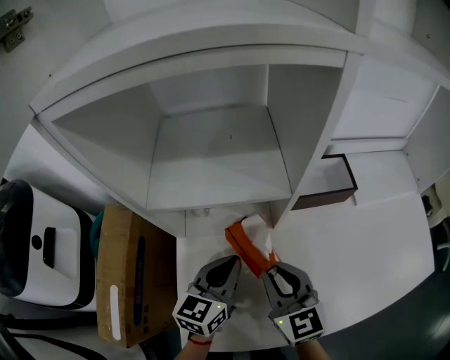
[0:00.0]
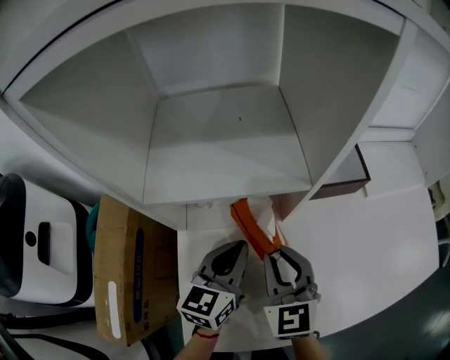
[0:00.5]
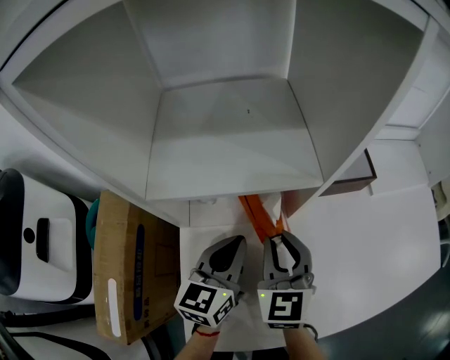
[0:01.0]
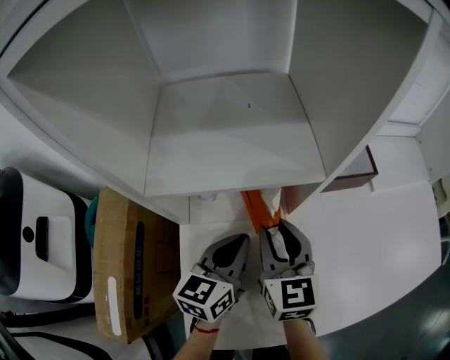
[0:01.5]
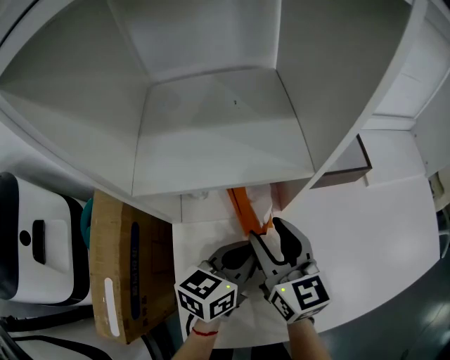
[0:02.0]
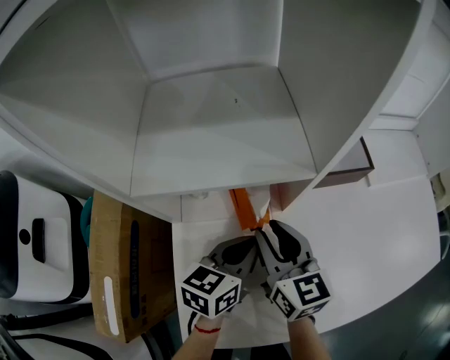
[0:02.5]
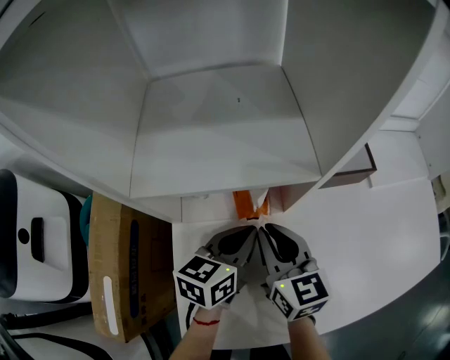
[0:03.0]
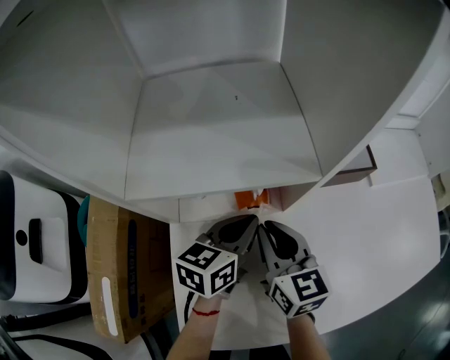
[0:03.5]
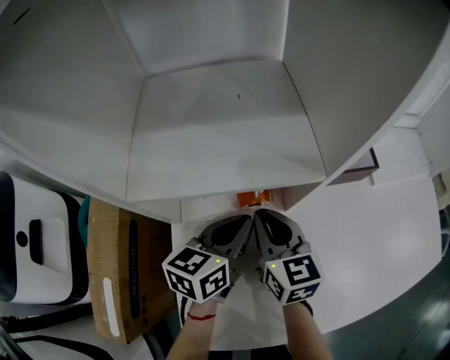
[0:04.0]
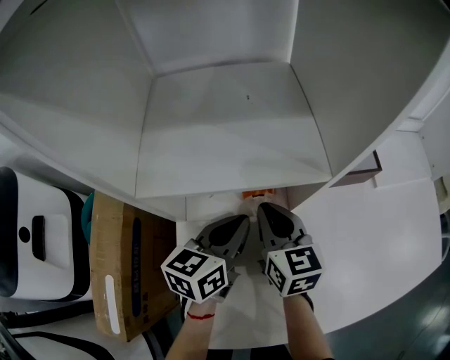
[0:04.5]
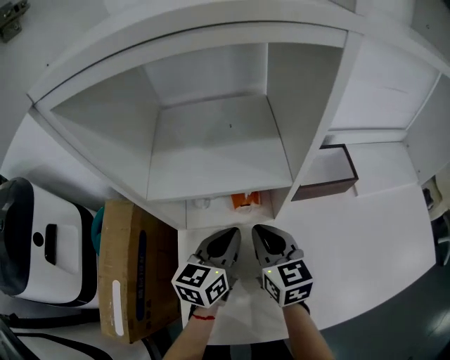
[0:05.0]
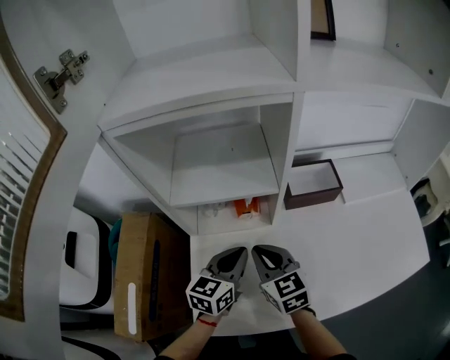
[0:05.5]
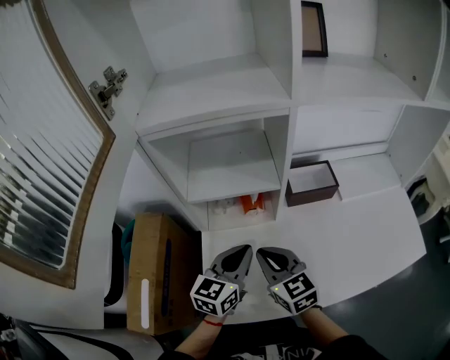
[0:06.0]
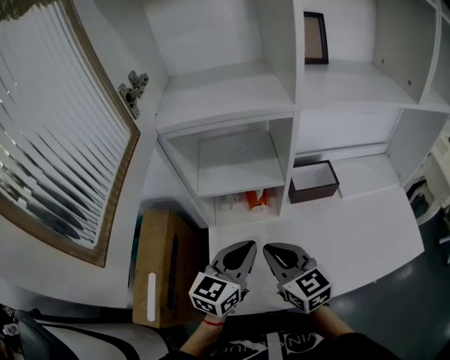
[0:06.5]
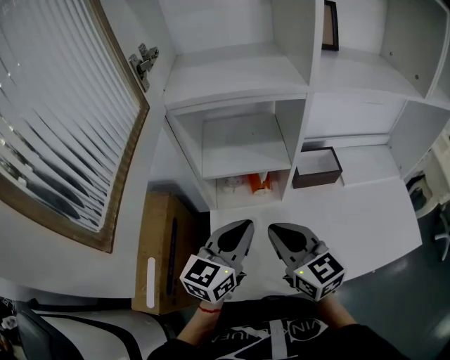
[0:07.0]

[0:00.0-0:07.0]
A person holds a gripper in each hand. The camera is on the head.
0:00.0 to 0:02.0: The right gripper heads forward, covering approximately 5 cm, and opens up.
0:02.0 to 0:03.5: The right gripper closes. Meanwhile the left gripper shifts some 5 cm forward.
0:03.5 to 0:05.0: The left gripper shifts by some 5 cm.
0:05.0 to 0:07.0: The grippers both shift upward and backward by approximately 25 cm.

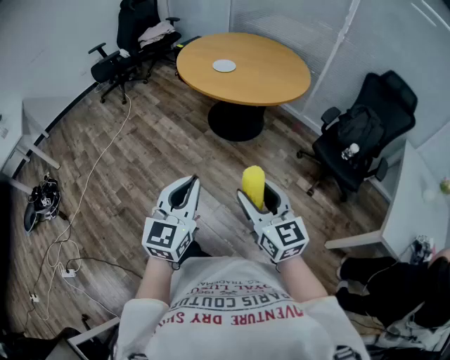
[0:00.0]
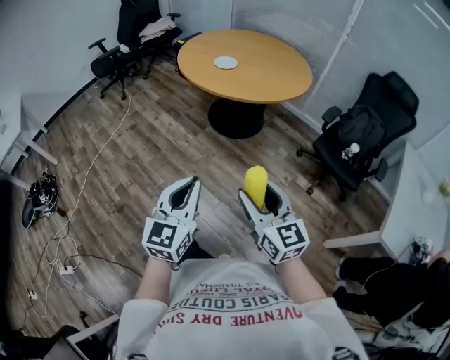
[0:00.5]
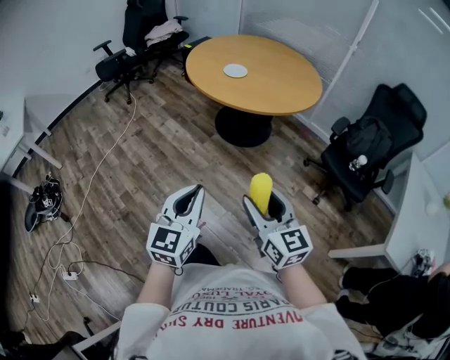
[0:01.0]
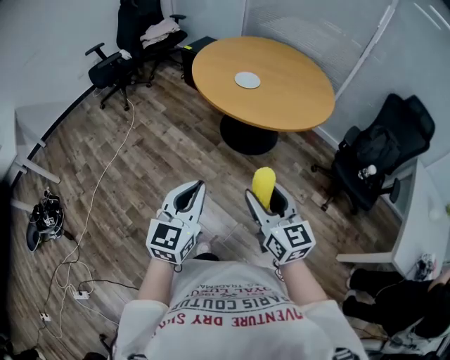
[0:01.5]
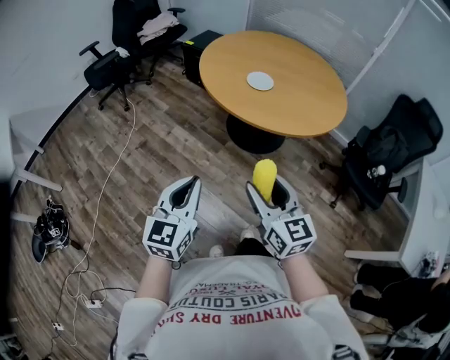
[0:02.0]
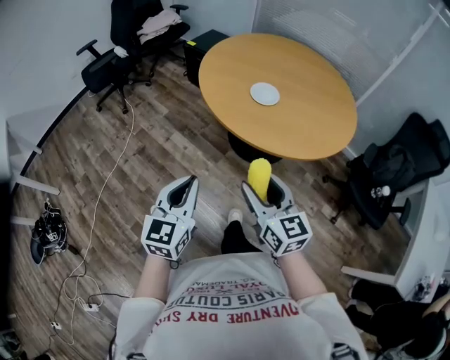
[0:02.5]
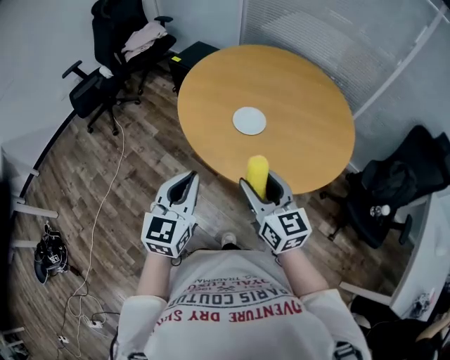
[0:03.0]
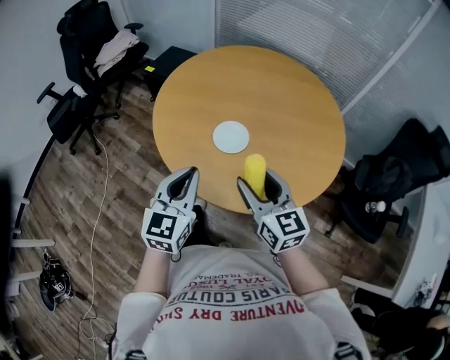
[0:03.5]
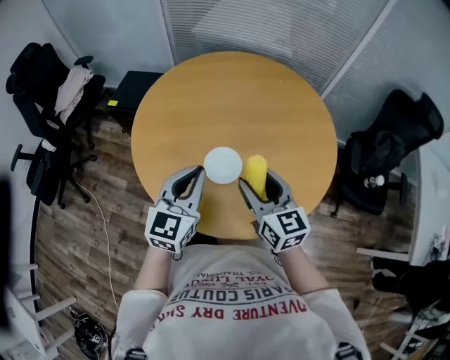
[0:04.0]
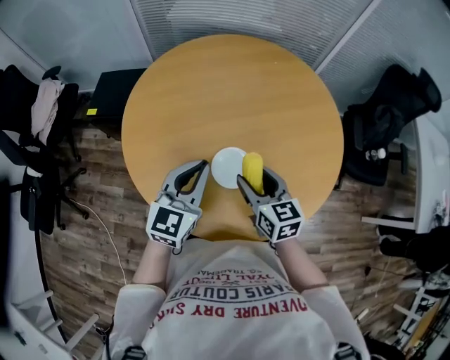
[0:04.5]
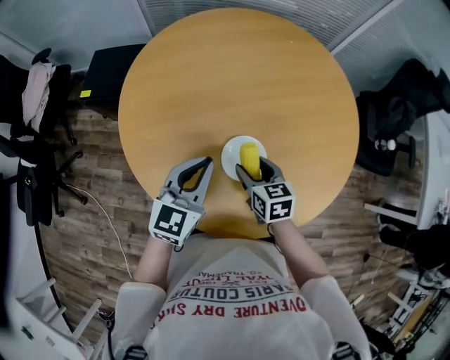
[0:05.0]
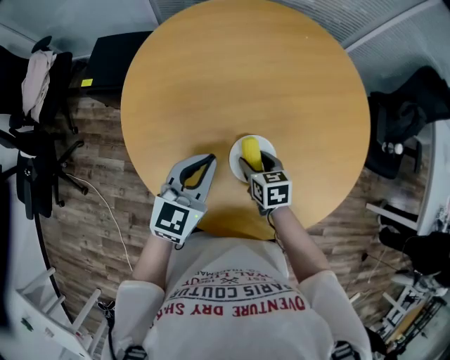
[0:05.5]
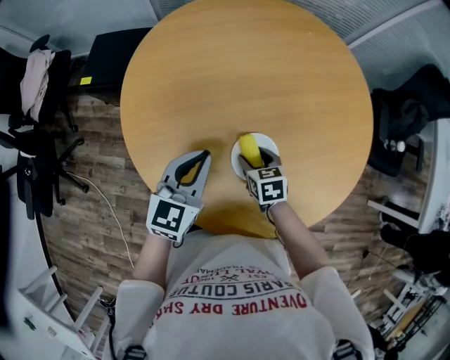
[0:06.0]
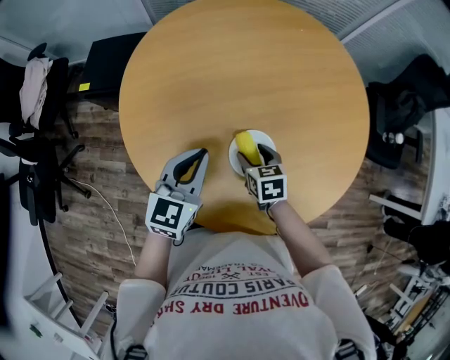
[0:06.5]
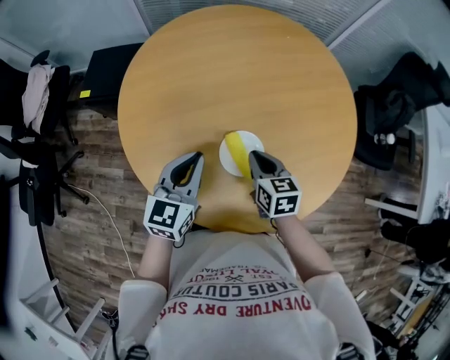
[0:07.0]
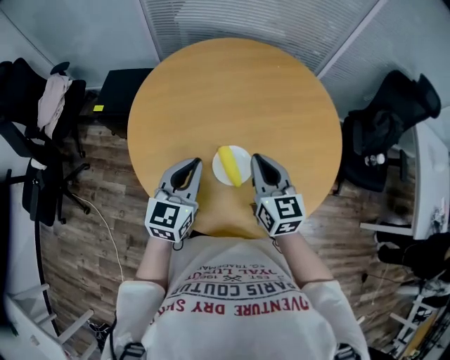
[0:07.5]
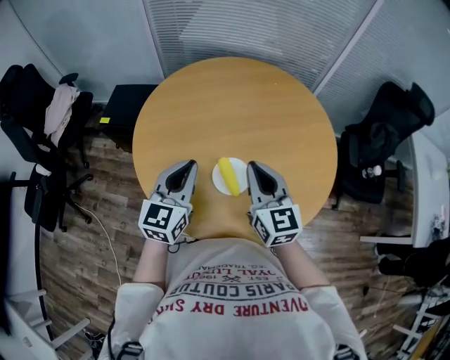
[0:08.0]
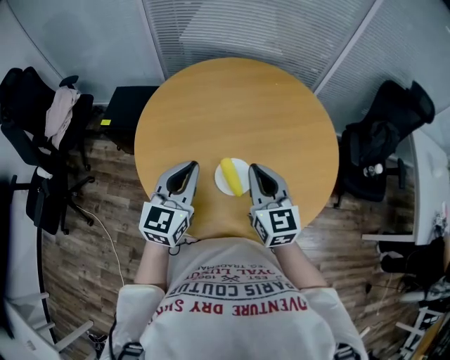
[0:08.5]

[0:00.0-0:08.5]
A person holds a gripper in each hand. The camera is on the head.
0:00.0 to 0:02.0: Both grippers move forward and to the left, roughly 35 cm.
0:02.0 to 0:04.0: The two grippers travel together, some 60 cm. The left gripper swivels approximately 30 degrees. The right gripper turns by about 20 degrees.
0:04.0 to 0:06.5: The right gripper goes some 25 cm downward, and points its fingers about 40 degrees further downward, while the left gripper is displaced downward, forward and to the left by approximately 20 cm.
0:06.5 to 0:08.5: The right gripper heads upward, covering roughly 30 cm, angles its fingers upward, by some 40 degrees, and closes. Meanwhile the left gripper is displaced upward by some 15 cm.

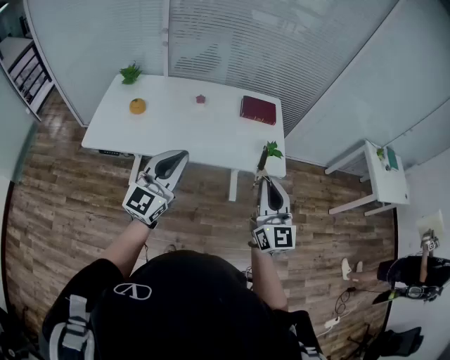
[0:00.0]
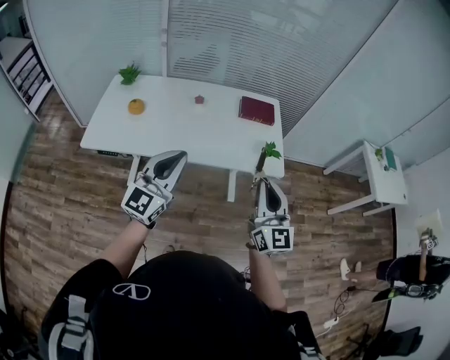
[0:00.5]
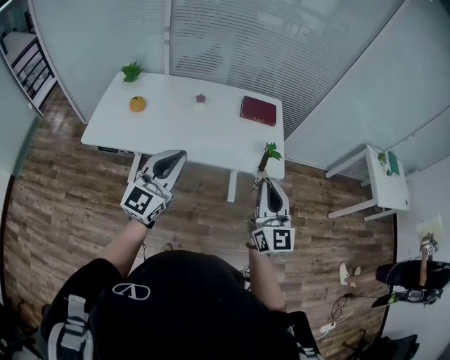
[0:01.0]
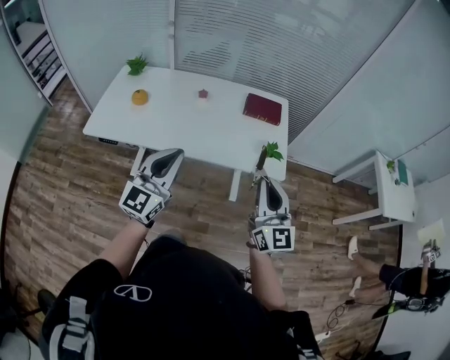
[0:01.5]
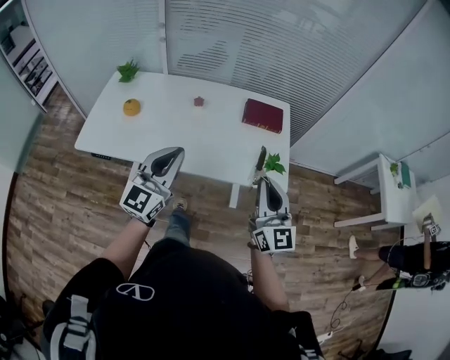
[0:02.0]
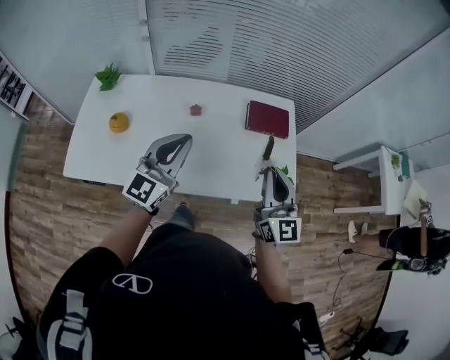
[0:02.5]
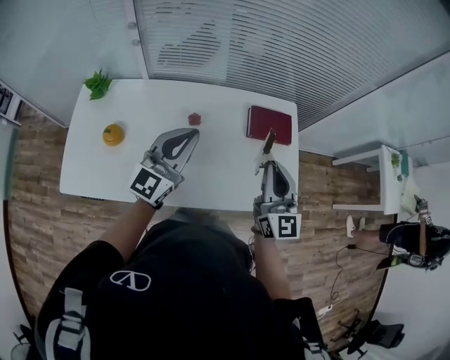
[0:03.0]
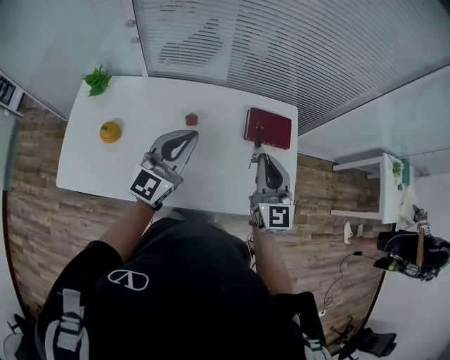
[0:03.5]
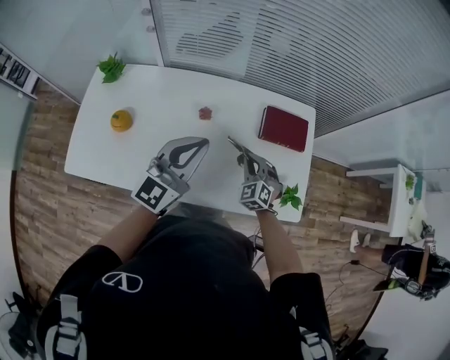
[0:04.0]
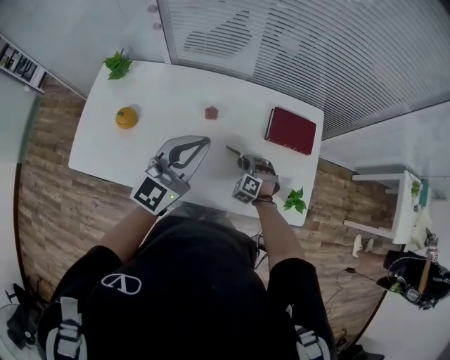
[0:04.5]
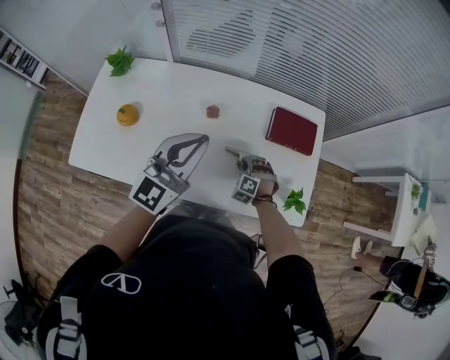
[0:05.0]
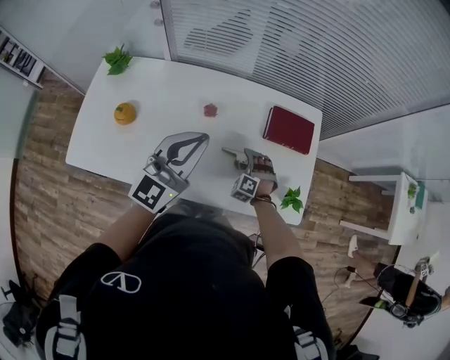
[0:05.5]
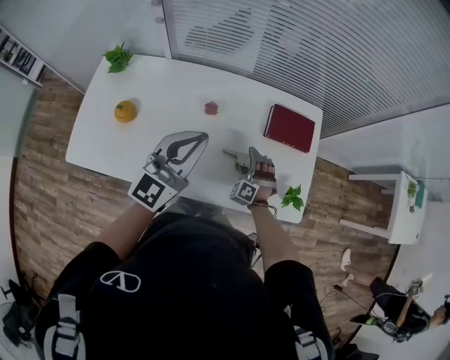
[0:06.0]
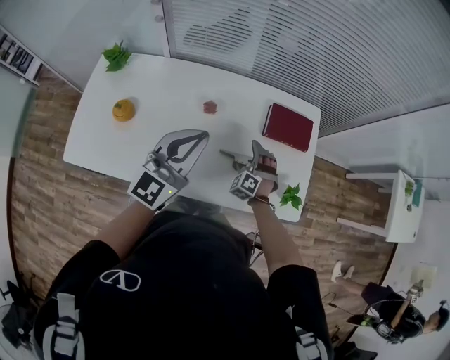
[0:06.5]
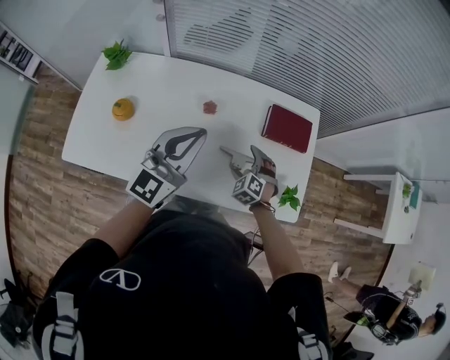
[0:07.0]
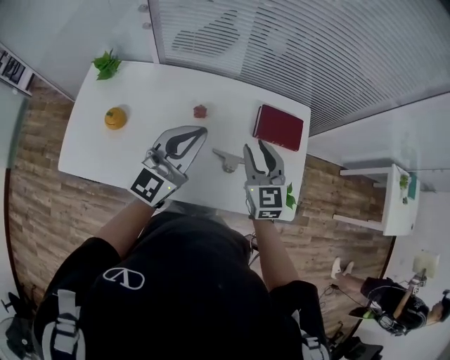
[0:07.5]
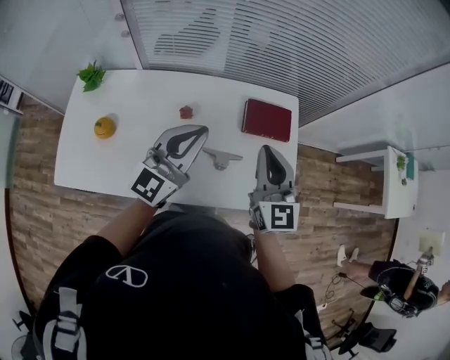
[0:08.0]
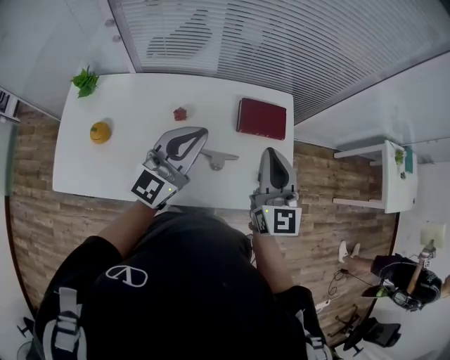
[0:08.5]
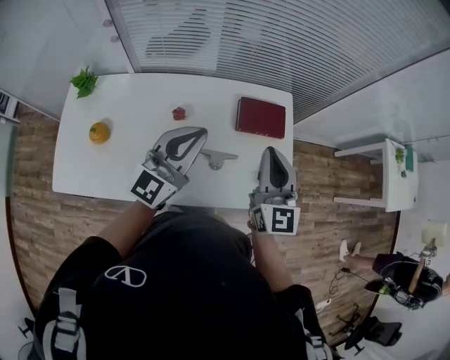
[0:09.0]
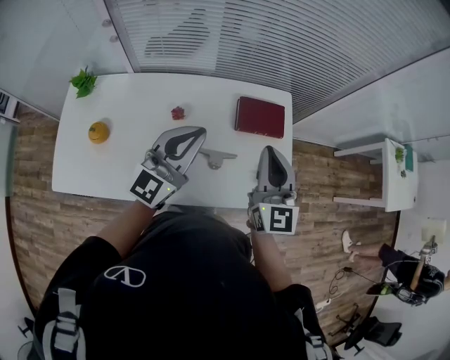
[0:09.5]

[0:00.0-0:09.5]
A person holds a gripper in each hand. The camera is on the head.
0:00.0 to 0:02.0: Both grippers move forward, some 10 cm.
0:02.0 to 0:04.0: The right gripper is displaced forward, downward and to the left by some 40 cm, and tilts its fingers about 50 degrees downward, while the left gripper travels forward by roughly 25 cm.
0:04.0 to 0:05.5: The right gripper goes approximately 10 cm downward, swivels approximately 30 degrees, and opens up.
0:05.5 to 0:07.5: The right gripper goes roughly 30 cm upward, rolls clockwise, seen from behind, by roughly 50 degrees, and opens, then closes once more.
0:07.5 to 0:09.5: The left gripper heads to the right, covering about 5 cm, while the right gripper moves to the right and upward, roughly 15 cm, and rotates about 20 degrees.

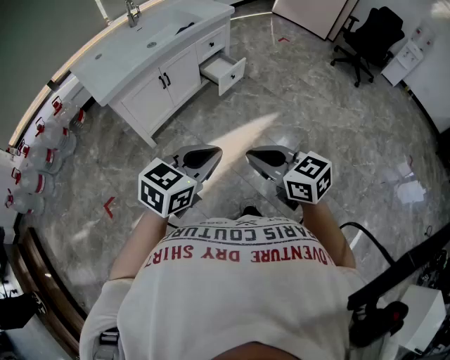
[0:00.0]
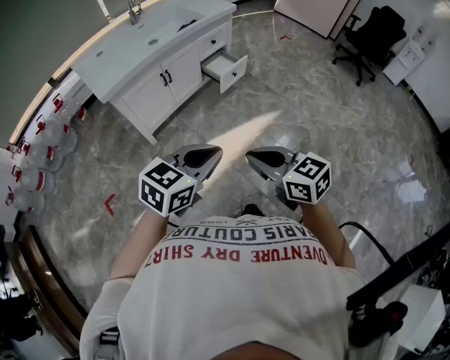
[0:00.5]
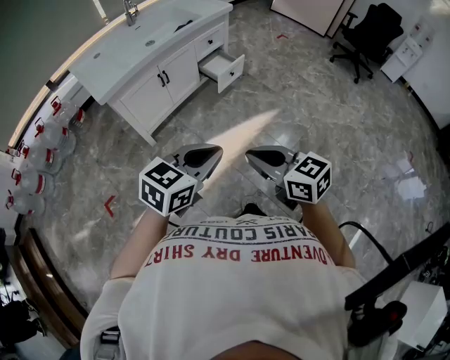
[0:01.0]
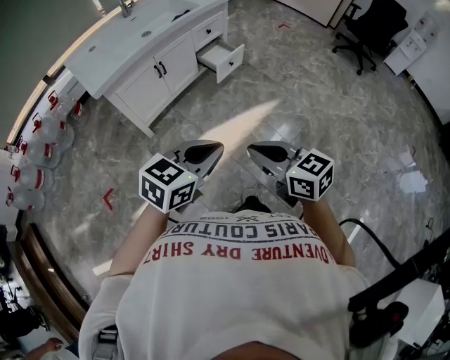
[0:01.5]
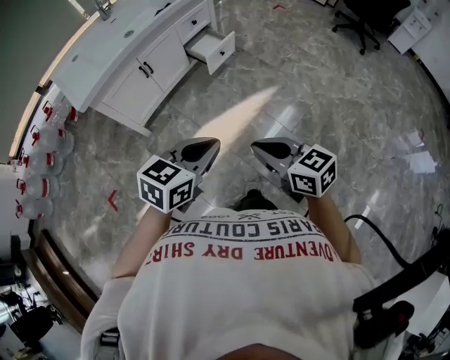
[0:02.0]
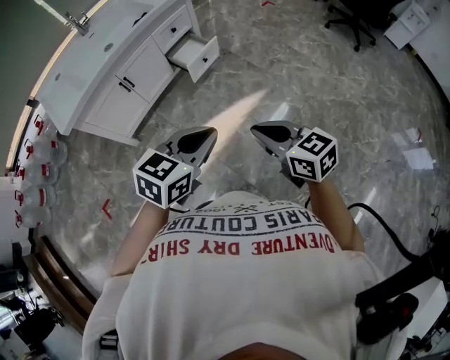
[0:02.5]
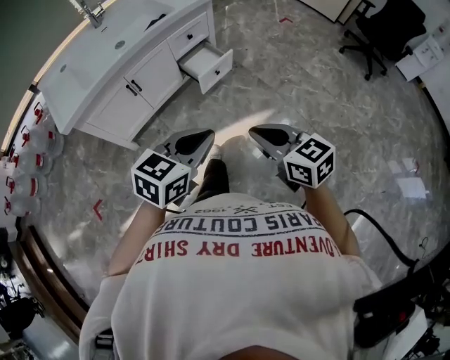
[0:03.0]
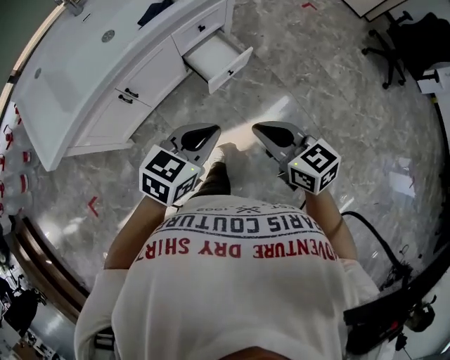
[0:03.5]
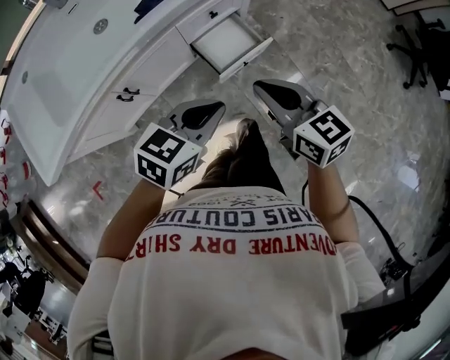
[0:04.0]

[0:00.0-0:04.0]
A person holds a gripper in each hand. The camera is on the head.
0:00.0 to 0:02.0: The right gripper is displaced to the right, downward and forward by some 15 cm. The left gripper travels to the right, forward and downward by some 10 cm.
0:02.0 to 0:04.0: Both grippers are carried forward, about 70 cm.
